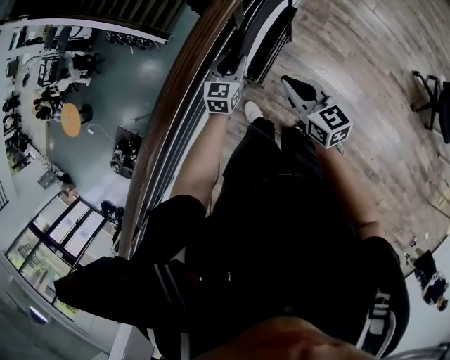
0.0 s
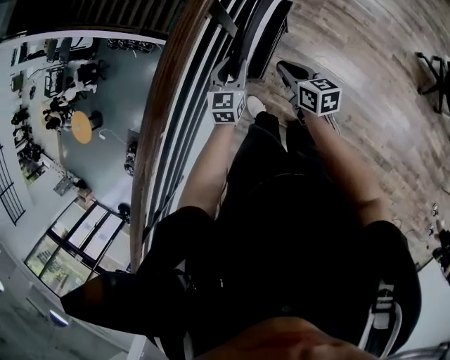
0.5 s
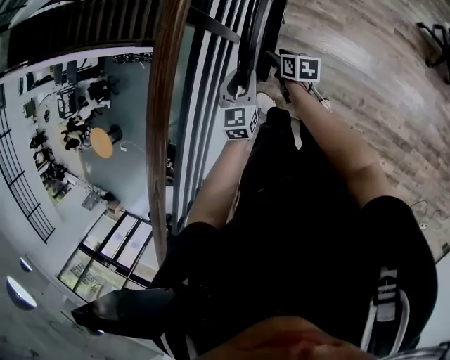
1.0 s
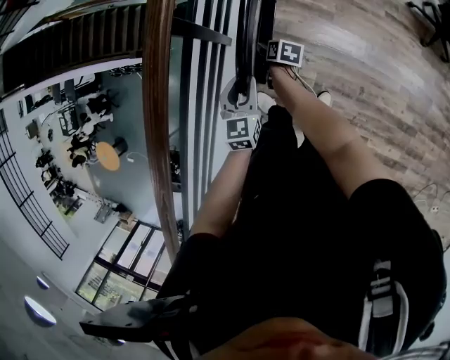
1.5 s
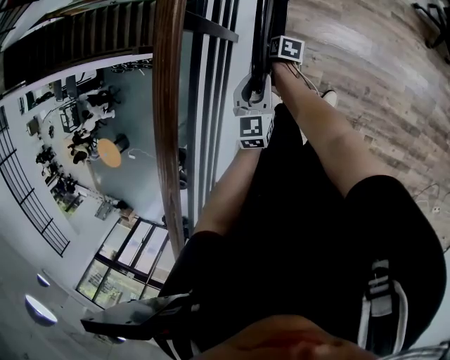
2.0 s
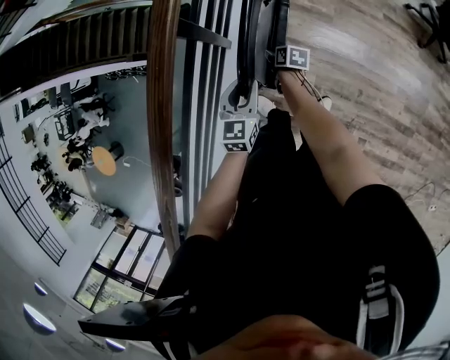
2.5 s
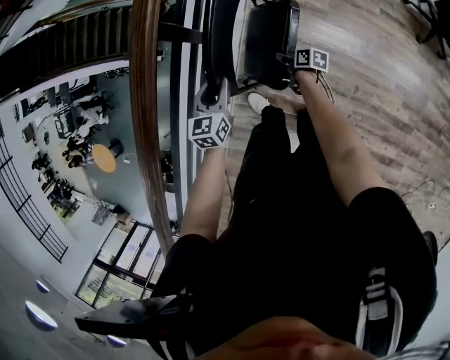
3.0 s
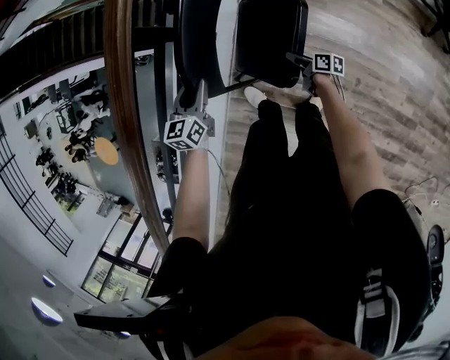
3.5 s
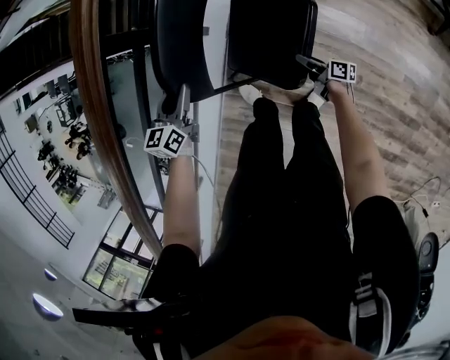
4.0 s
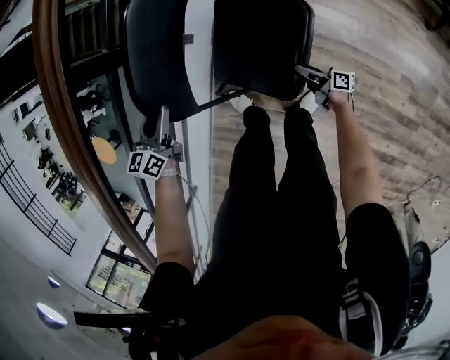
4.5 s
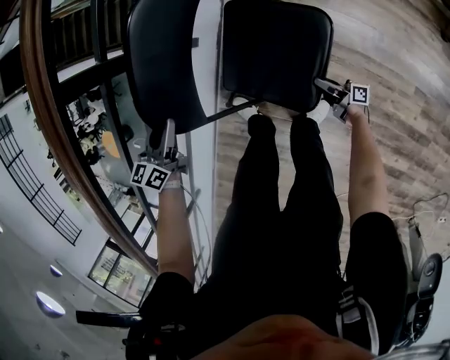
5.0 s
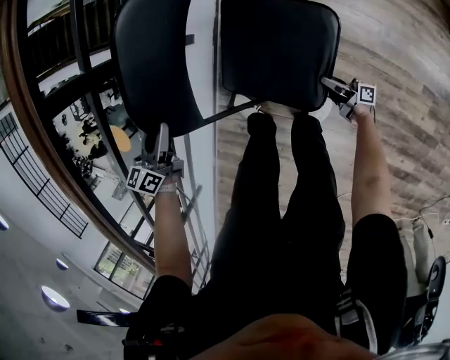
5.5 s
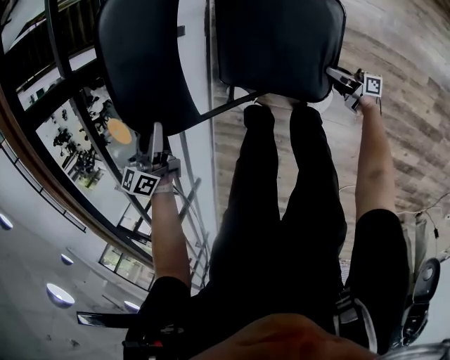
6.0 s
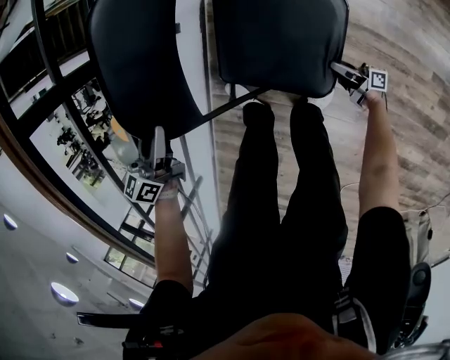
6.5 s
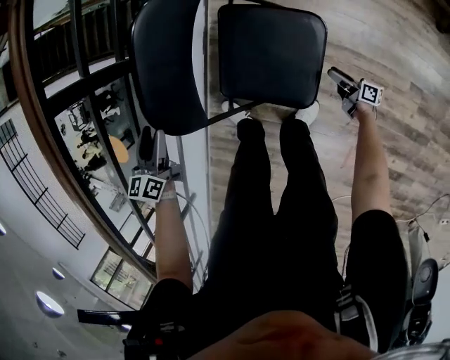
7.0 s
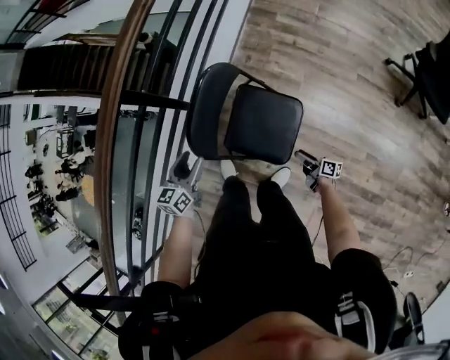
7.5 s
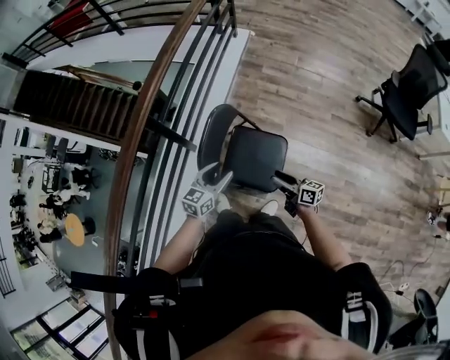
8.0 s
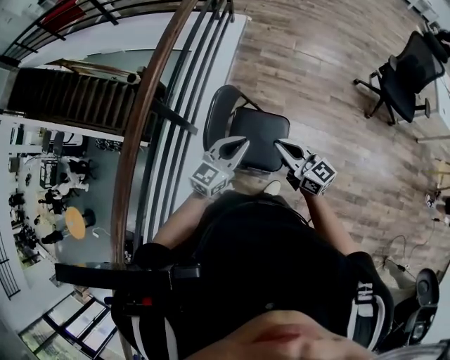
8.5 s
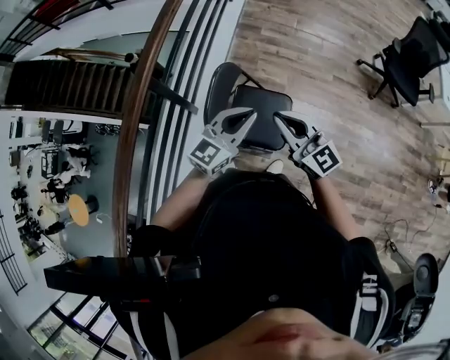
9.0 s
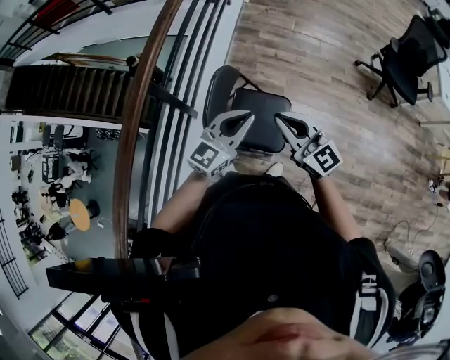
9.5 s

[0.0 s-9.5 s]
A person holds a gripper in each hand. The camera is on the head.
0.0 to 2.0 s: The left gripper is displaced to the right and backward by about 15 cm. The right gripper travels downward by about 30 cm, points its fingers about 40 degrees further downward, and opens up.
2.0 to 4.0 s: The left gripper travels downward and to the left by some 10 cm; the right gripper travels to the right, backward and downward by approximately 25 cm, and tilts its fingers approximately 40 degrees upward.
4.0 to 5.5 s: The left gripper heads downward, covering roughly 5 cm, while the right gripper shifts roughly 20 cm downward, to the right and backward, and turns by approximately 20 degrees.
5.5 to 7.5 s: The left gripper travels upward and to the right by about 15 cm, and opens its fingers; the right gripper heads upward, covering about 20 cm, and turns by approximately 20 degrees.
7.5 to 9.5 s: The left gripper goes approximately 30 cm upward and to the right, rotates approximately 40 degrees, and closes up. The right gripper is displaced upward by roughly 50 cm, rotates around the line of its fingers by about 80 degrees, counterclockwise from behind, and closes up.

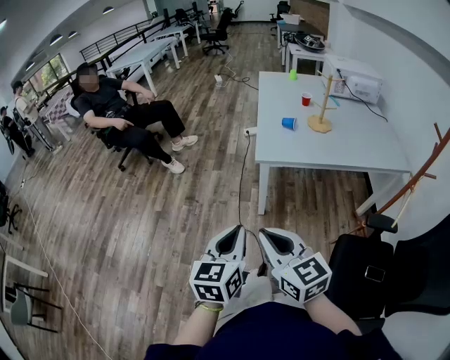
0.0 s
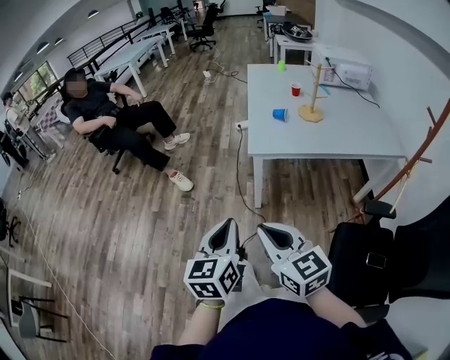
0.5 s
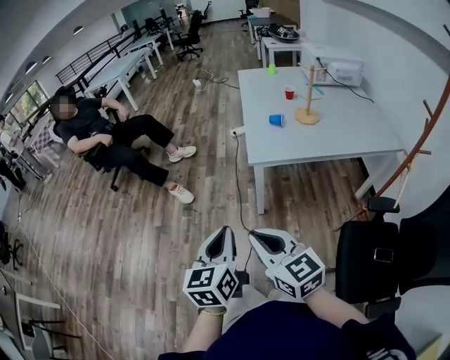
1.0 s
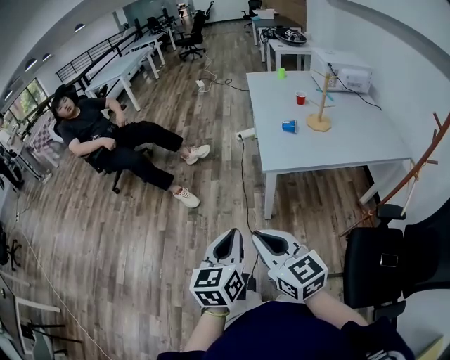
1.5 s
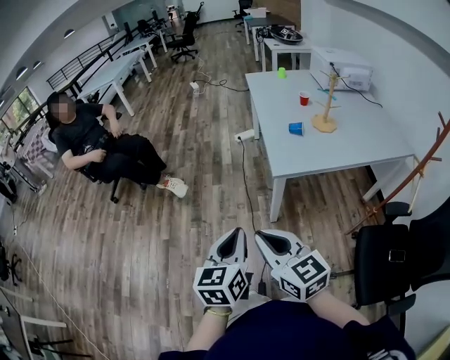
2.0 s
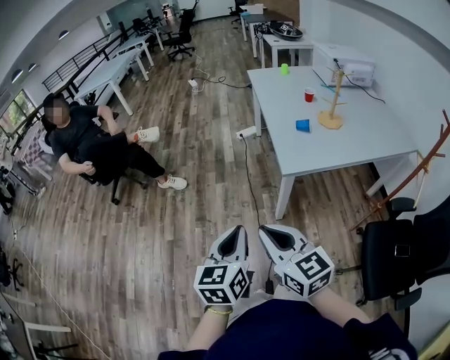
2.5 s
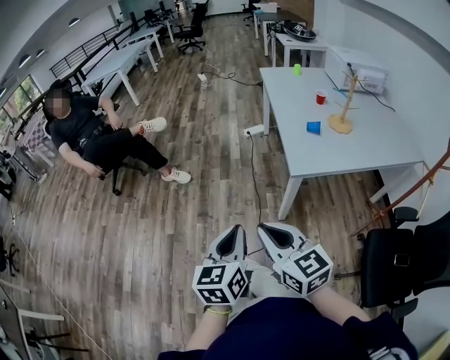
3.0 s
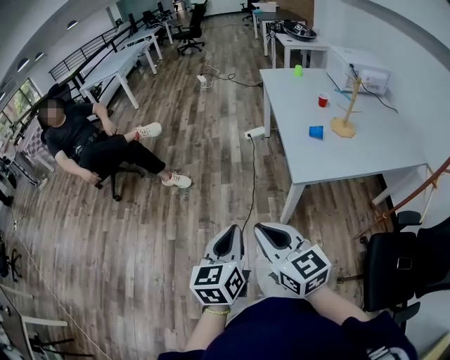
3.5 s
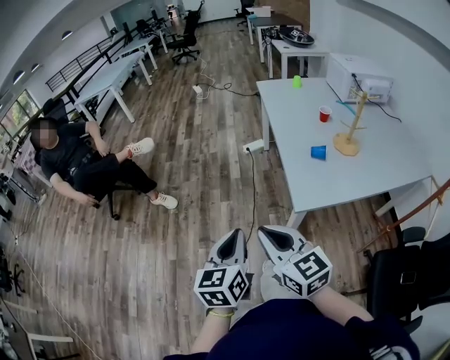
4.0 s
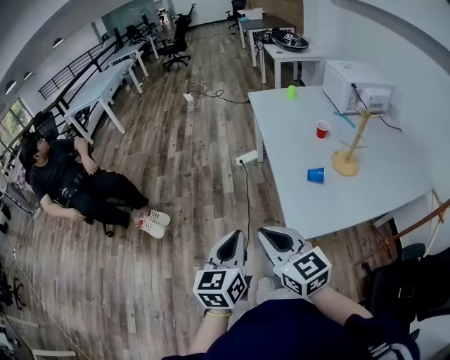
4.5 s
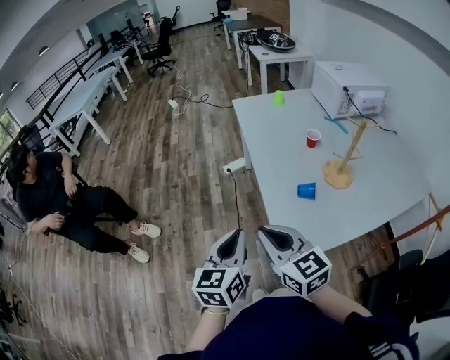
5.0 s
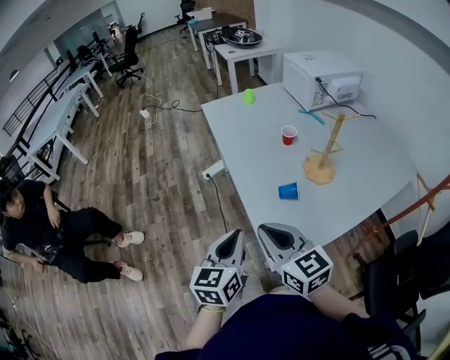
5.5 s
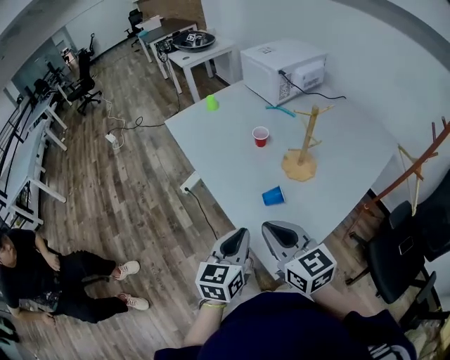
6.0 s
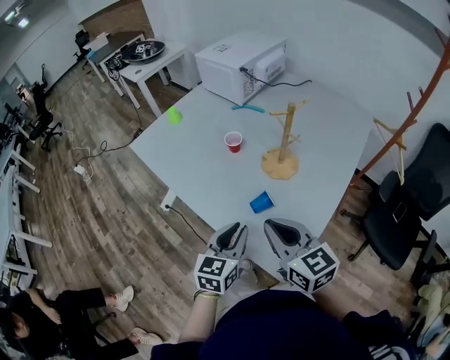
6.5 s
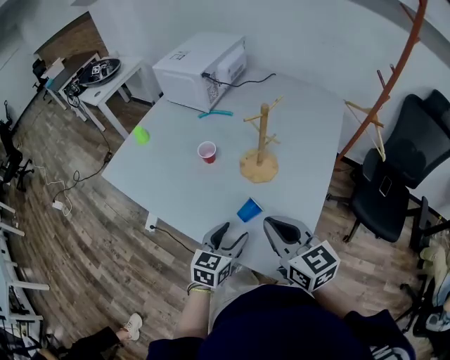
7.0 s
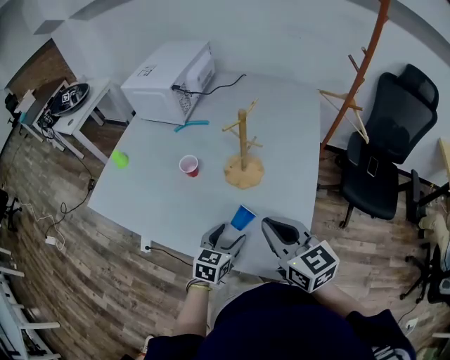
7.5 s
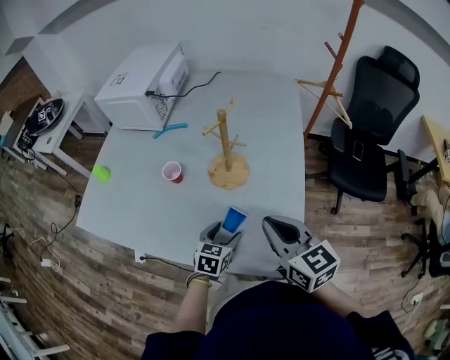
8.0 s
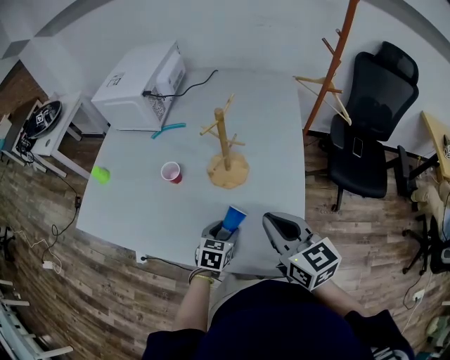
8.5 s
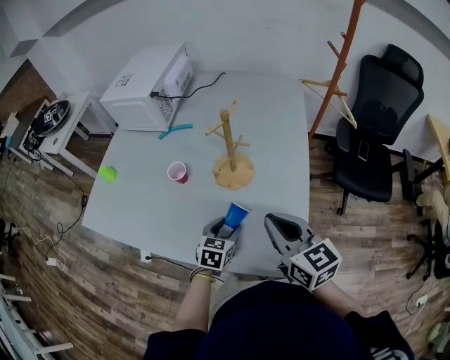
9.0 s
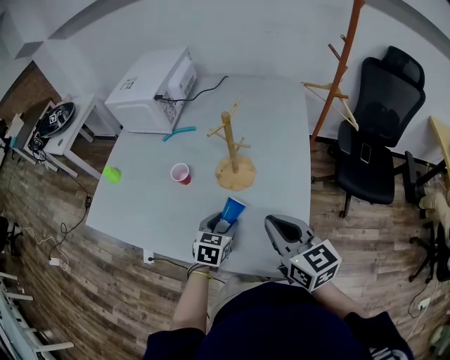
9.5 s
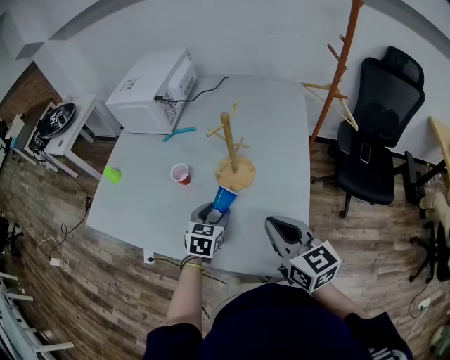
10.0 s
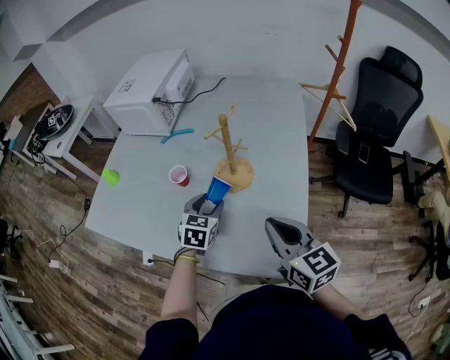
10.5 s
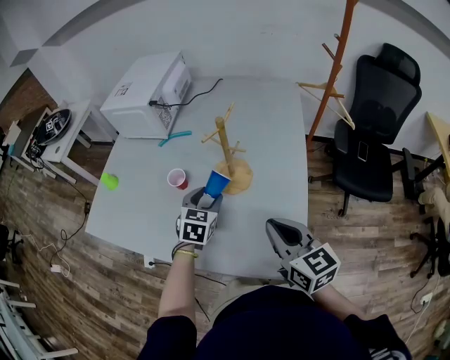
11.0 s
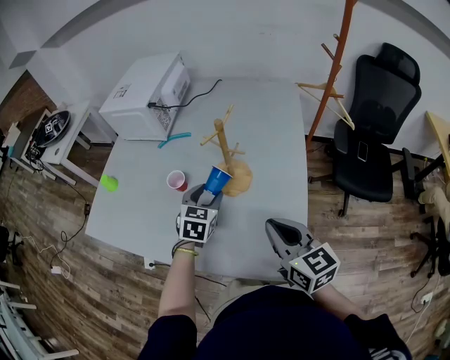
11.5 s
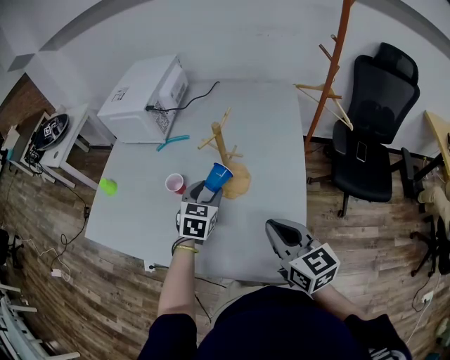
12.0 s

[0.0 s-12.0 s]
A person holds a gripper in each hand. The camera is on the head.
0.0 to 2.0 s: The grippers both shift forward and to the left by roughly 20 cm.
2.0 to 4.0 s: Both grippers move forward, some 20 cm.
4.0 to 6.0 s: The right gripper moves roughly 35 cm, and swivels roughly 30 degrees, while the left gripper shifts by approximately 35 cm, and rotates roughly 40 degrees.
6.0 to 8.0 s: The right gripper ends up roughly 10 cm from where it was, and rotates approximately 50 degrees. The left gripper moves downward, some 20 cm, rotates some 60 degrees, and opens up.
8.0 to 10.0 s: The left gripper travels upward and forward by some 10 cm.
10.0 to 12.0 s: The left gripper heads forward and upward, covering roughly 10 cm.

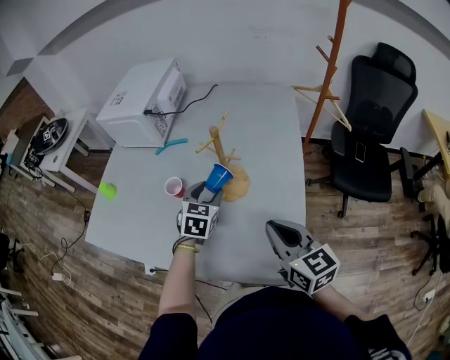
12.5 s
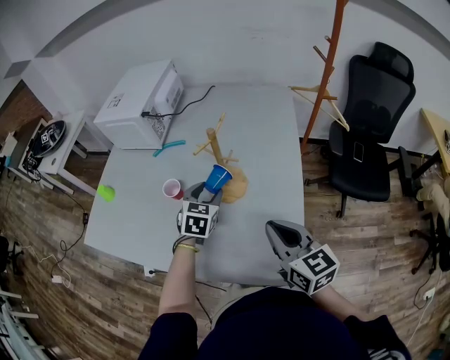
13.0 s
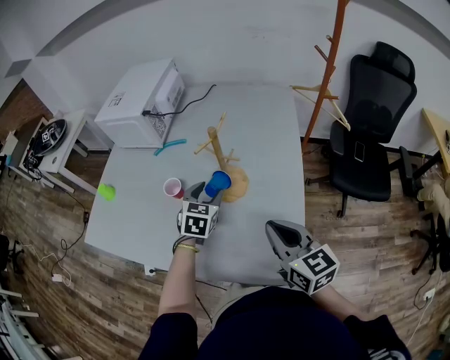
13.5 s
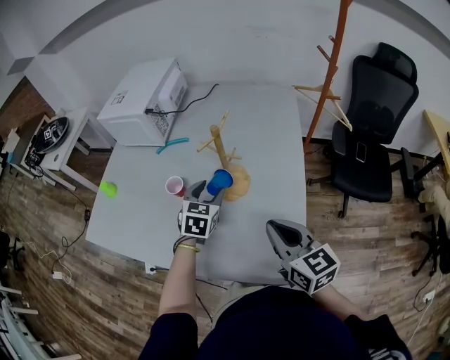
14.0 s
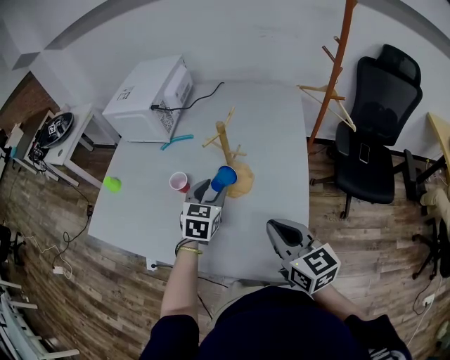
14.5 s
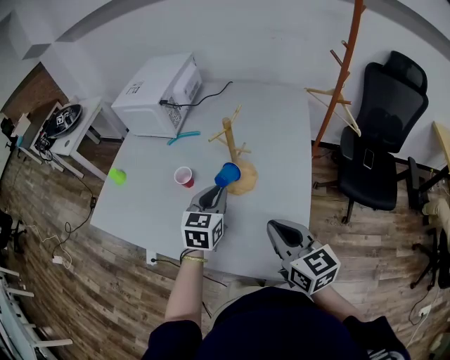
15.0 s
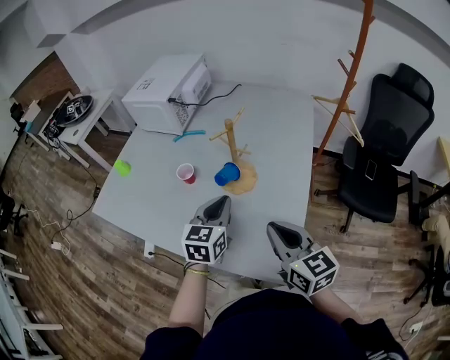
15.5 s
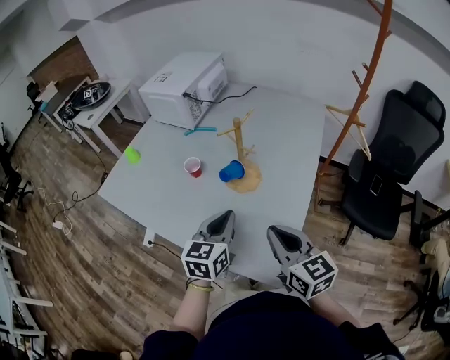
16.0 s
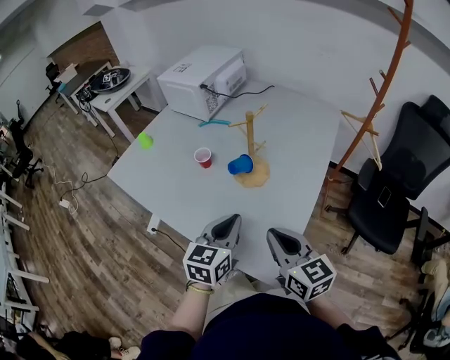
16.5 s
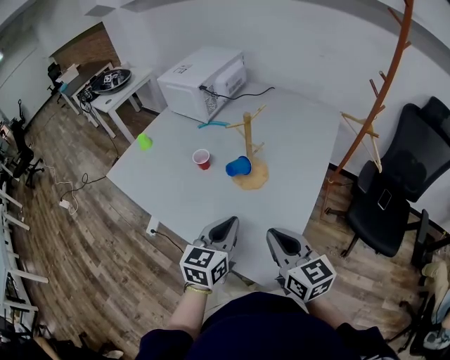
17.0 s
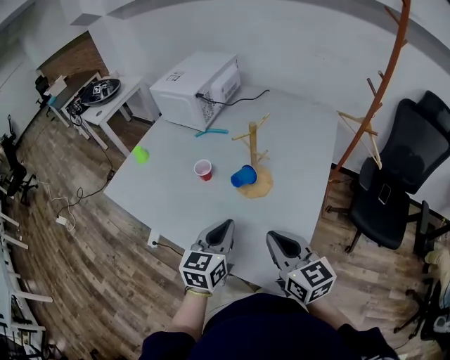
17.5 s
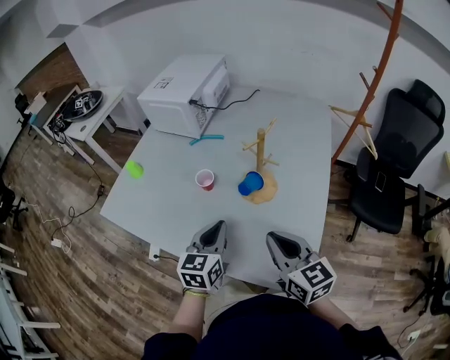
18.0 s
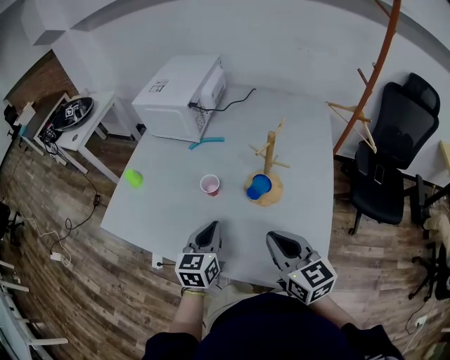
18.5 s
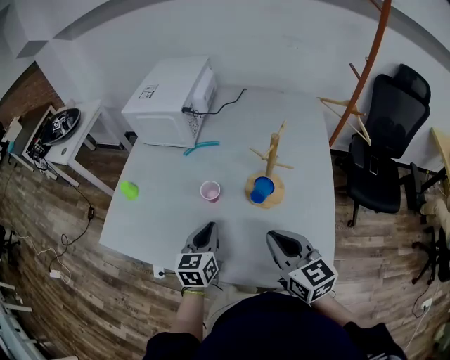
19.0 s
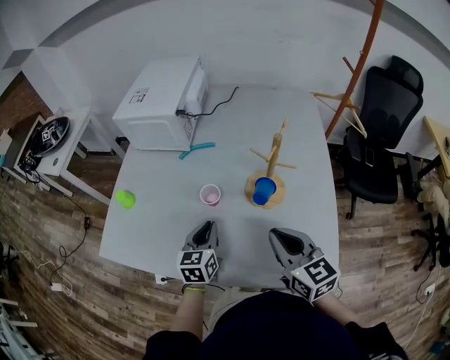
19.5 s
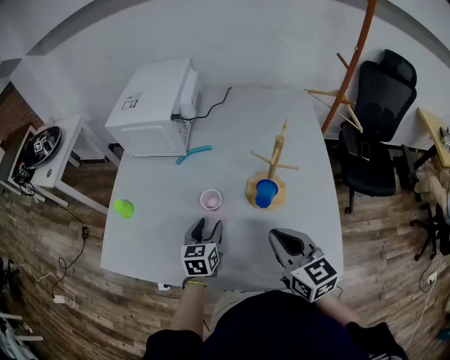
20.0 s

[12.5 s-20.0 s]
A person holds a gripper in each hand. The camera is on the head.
12.5 to 14.5 s: There are only small adjustments of the grippers.
14.5 to 16.5 s: The left gripper is displaced backward by roughly 20 cm, swivels roughly 30 degrees, and closes its fingers. Meanwhile the right gripper moves backward, about 5 cm.
16.5 to 18.0 s: Both grippers move to the left and forward, some 10 cm.
18.0 to 20.0 s: The left gripper is displaced forward, downward and to the left by approximately 20 cm, and opens up. Meanwhile the right gripper is displaced to the left and forward by approximately 10 cm.
